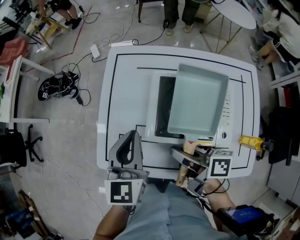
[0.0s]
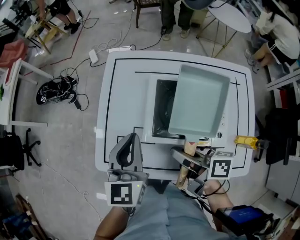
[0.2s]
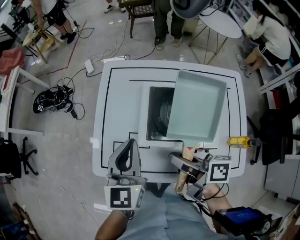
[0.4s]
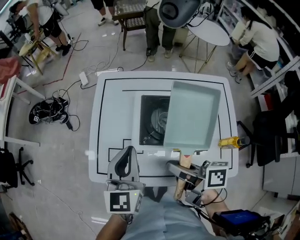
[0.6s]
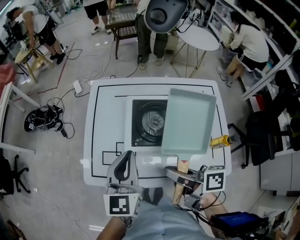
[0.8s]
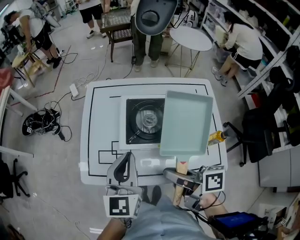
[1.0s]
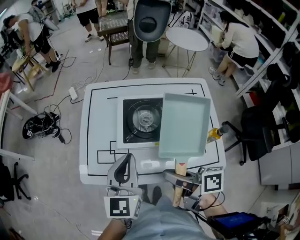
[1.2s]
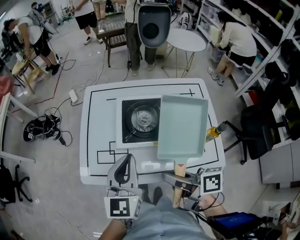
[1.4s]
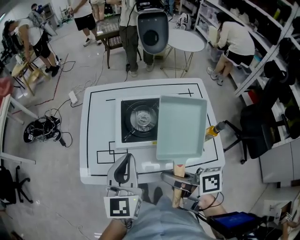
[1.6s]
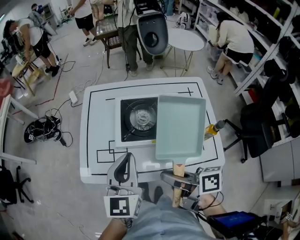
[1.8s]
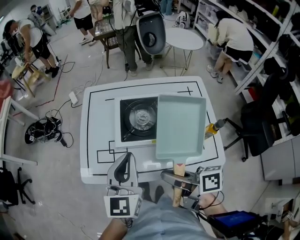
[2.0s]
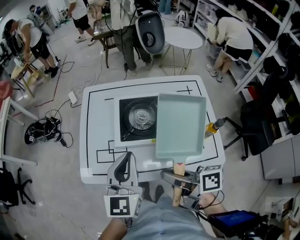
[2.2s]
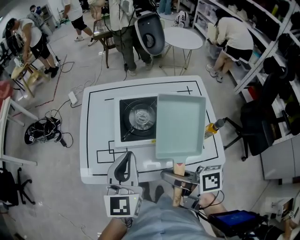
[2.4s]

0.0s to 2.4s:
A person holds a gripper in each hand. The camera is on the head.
0.0s to 1.2s: Both grippers move backward and upward, roughly 15 cm.
1.2s to 2.4s: The grippers move only a little.

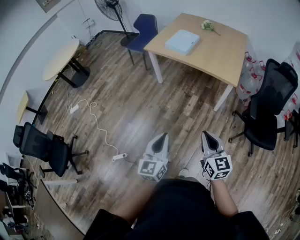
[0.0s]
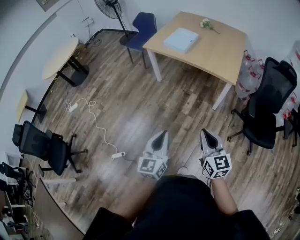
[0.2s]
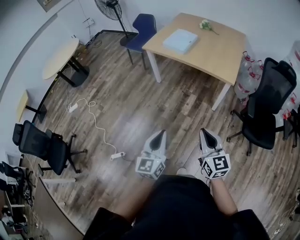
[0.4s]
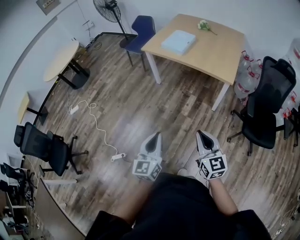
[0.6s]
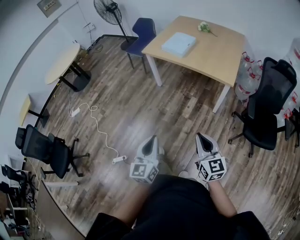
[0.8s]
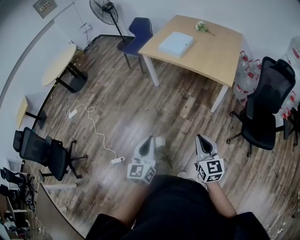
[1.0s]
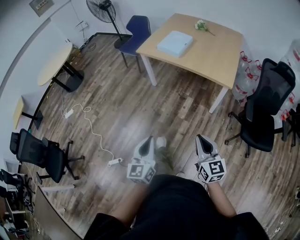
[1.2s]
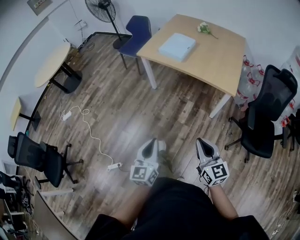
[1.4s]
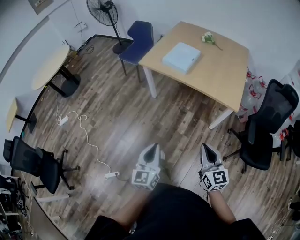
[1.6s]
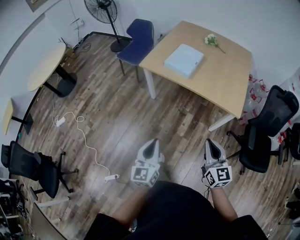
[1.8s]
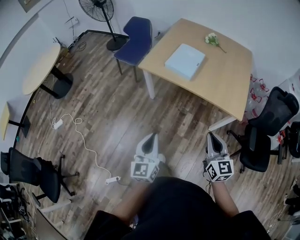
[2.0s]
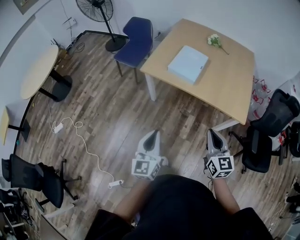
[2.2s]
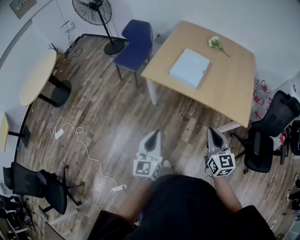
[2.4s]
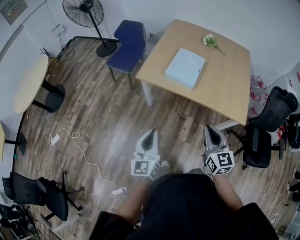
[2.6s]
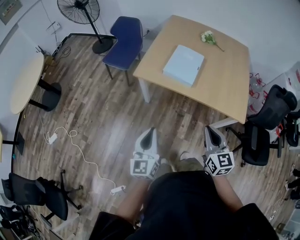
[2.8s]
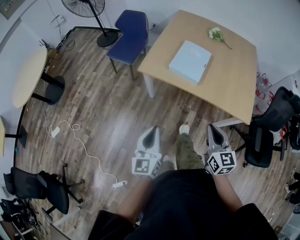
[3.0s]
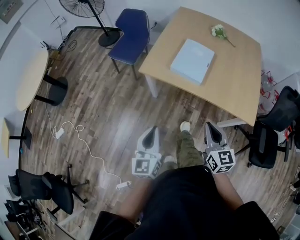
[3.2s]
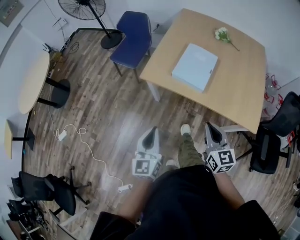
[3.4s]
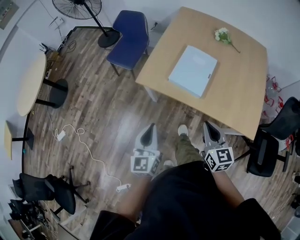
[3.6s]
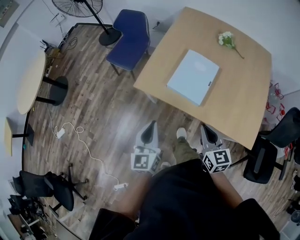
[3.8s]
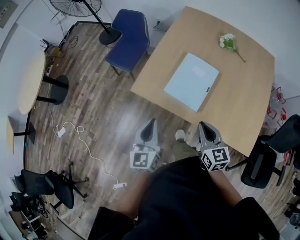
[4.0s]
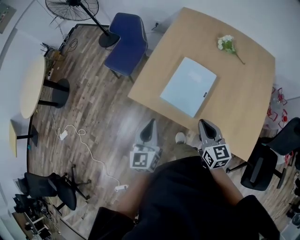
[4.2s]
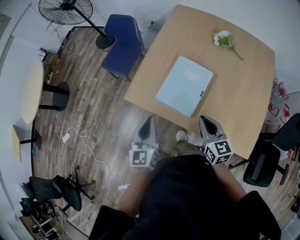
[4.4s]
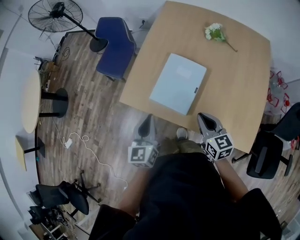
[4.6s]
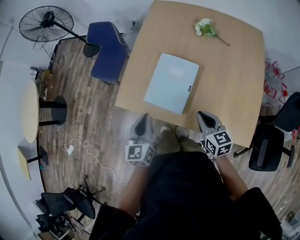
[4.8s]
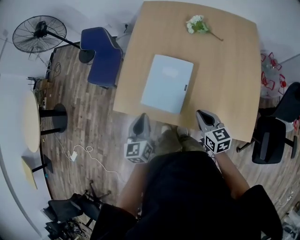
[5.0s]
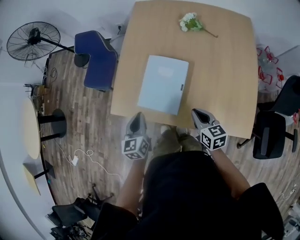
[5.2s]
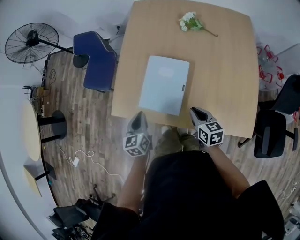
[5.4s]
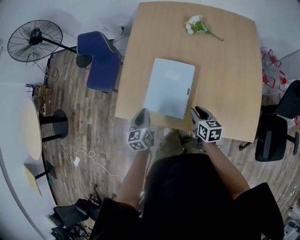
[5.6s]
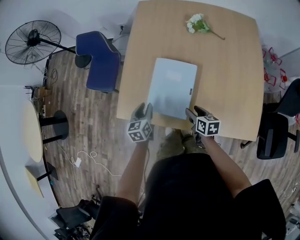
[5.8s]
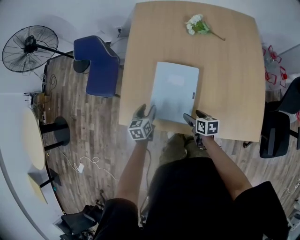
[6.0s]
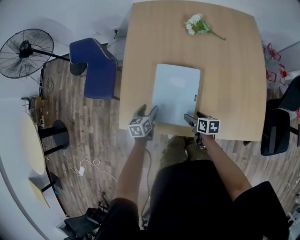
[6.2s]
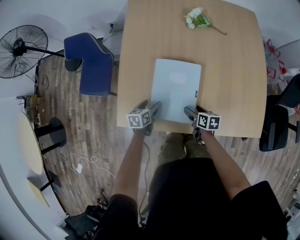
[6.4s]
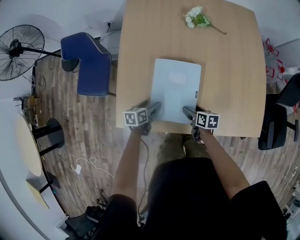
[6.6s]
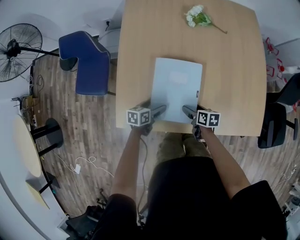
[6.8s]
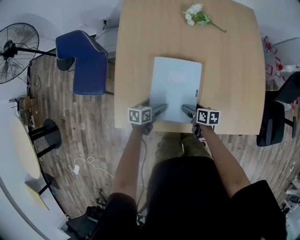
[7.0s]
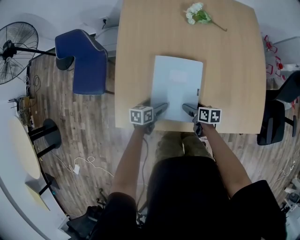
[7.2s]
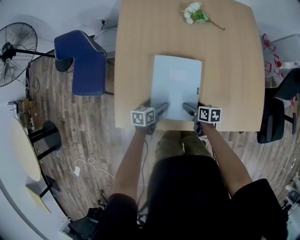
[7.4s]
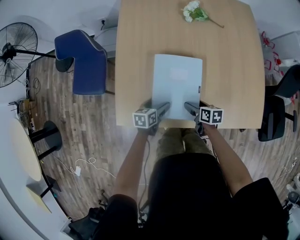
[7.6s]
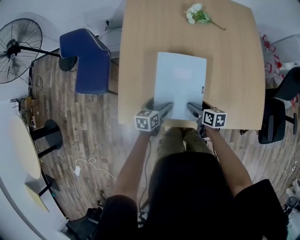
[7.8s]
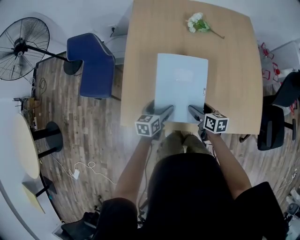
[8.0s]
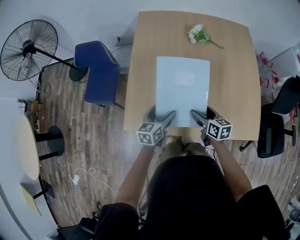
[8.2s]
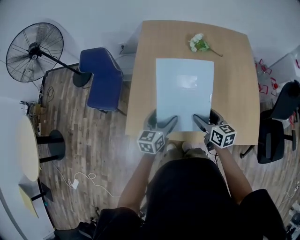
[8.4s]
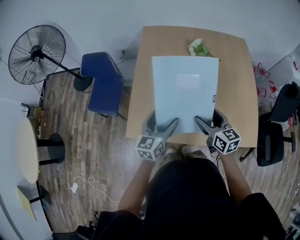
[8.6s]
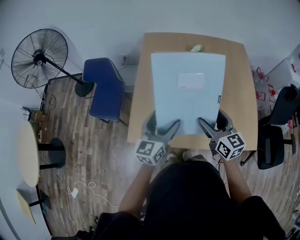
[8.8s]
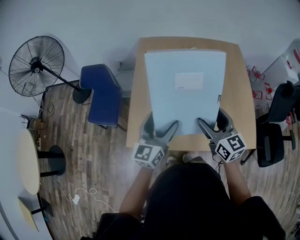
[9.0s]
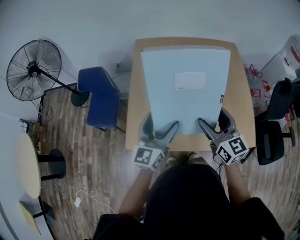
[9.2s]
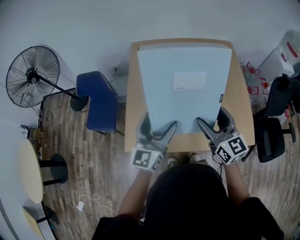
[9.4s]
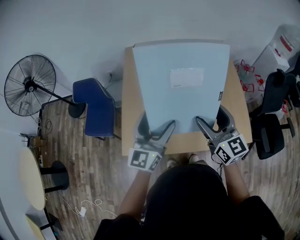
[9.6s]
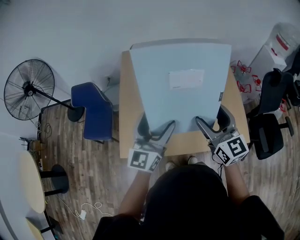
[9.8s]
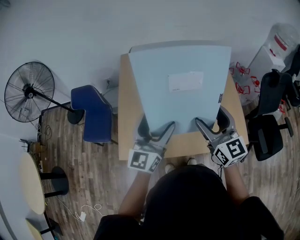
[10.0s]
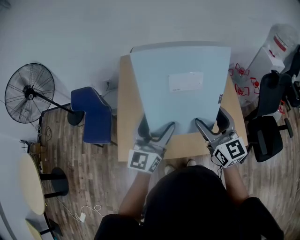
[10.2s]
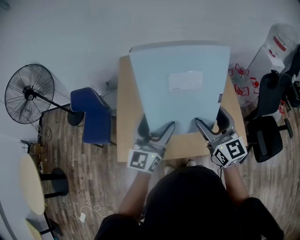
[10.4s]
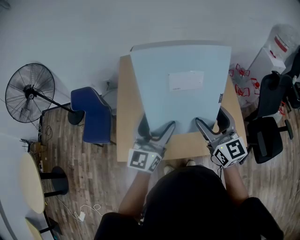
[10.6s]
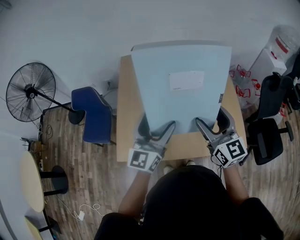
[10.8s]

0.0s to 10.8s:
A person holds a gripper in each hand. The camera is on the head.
0.0s to 1.6s: Both grippers move forward, about 20 cm.
1.6s to 3.0s: Both grippers move forward and to the left, approximately 40 cm.
3.0s to 4.6s: Both grippers are carried forward and to the right, approximately 40 cm.
4.6s to 6.2s: The left gripper moves downward and forward, approximately 30 cm, rotates approximately 40 degrees, and opens up. Meanwhile the right gripper goes some 25 cm downward, rotates around the line of its fingers by about 40 degrees, clockwise from behind, and opens up.
6.2s to 7.8s: The left gripper opens its fingers.
7.8s to 9.2s: Both grippers move upward, approximately 35 cm. The right gripper tips its fingers upward by about 30 degrees, while the left gripper tips its fingers upward by approximately 40 degrees.
9.2s to 10.8s: The grippers both shift to the right and upward by some 15 cm.

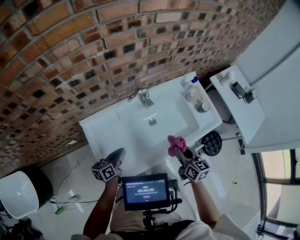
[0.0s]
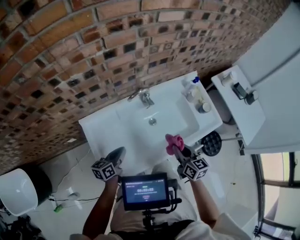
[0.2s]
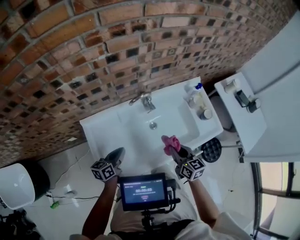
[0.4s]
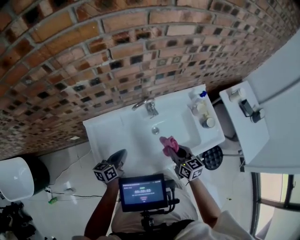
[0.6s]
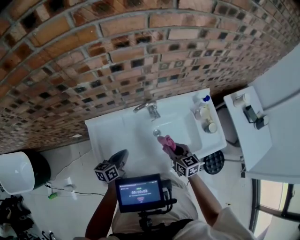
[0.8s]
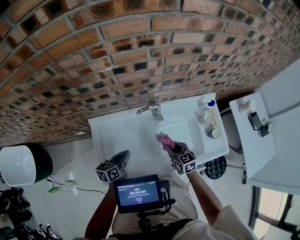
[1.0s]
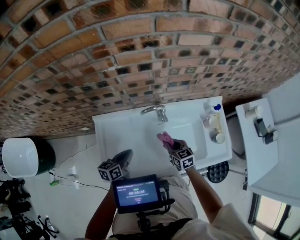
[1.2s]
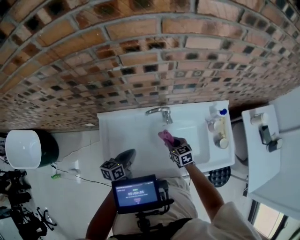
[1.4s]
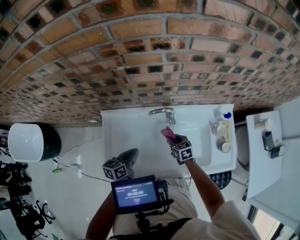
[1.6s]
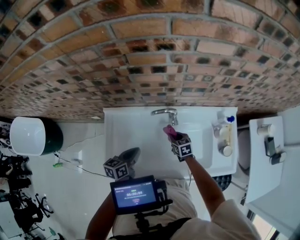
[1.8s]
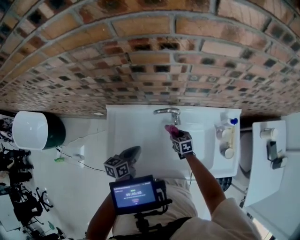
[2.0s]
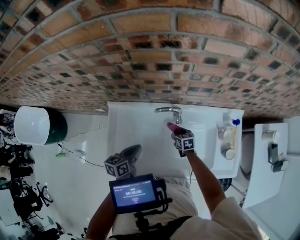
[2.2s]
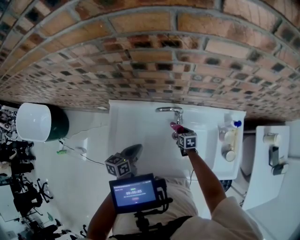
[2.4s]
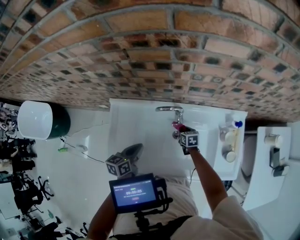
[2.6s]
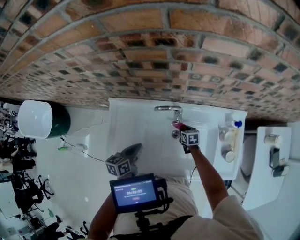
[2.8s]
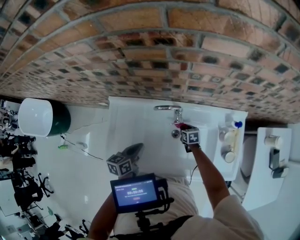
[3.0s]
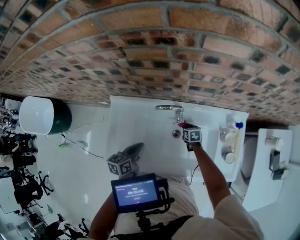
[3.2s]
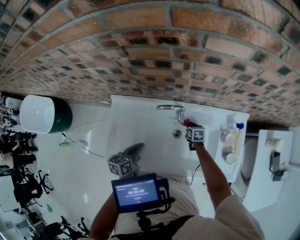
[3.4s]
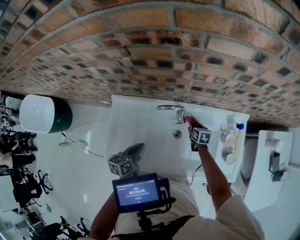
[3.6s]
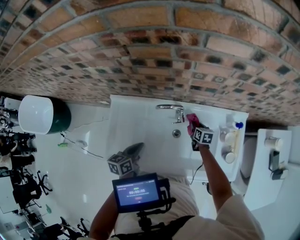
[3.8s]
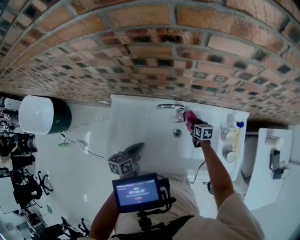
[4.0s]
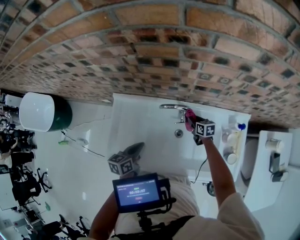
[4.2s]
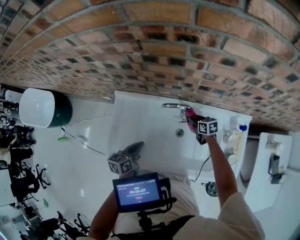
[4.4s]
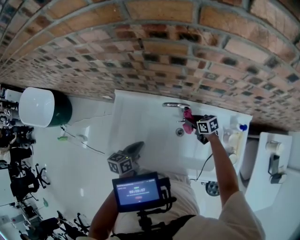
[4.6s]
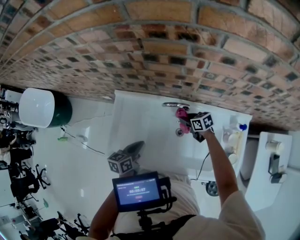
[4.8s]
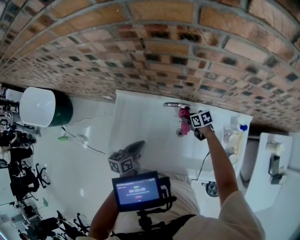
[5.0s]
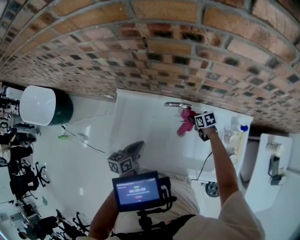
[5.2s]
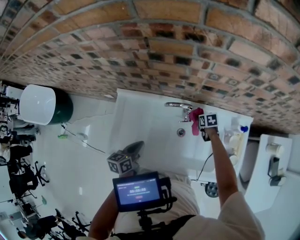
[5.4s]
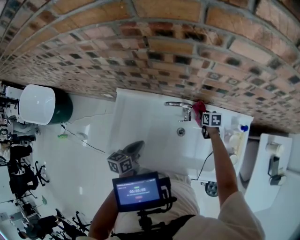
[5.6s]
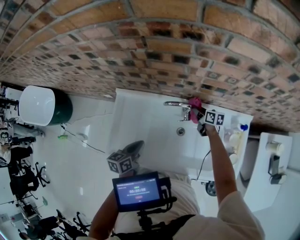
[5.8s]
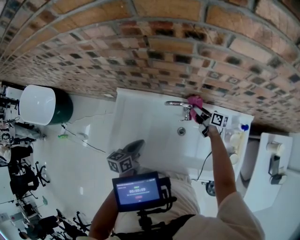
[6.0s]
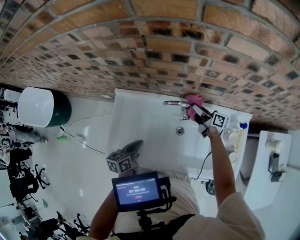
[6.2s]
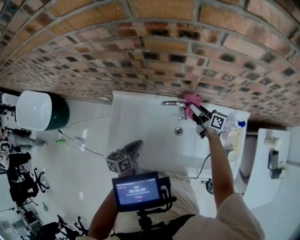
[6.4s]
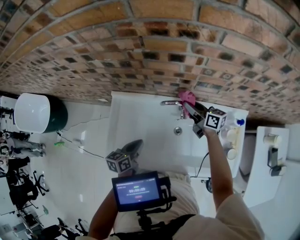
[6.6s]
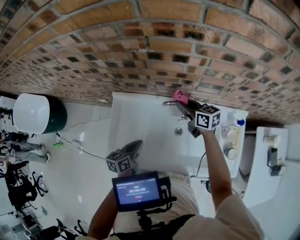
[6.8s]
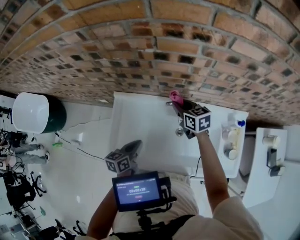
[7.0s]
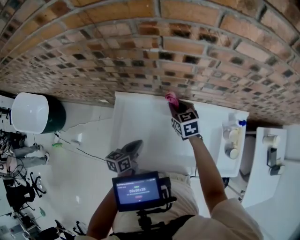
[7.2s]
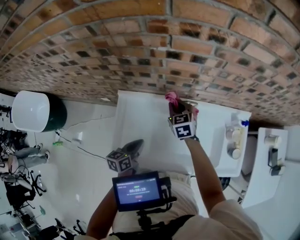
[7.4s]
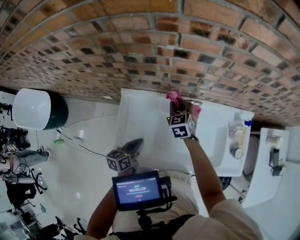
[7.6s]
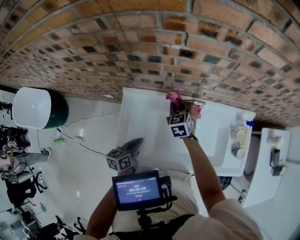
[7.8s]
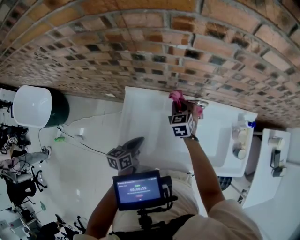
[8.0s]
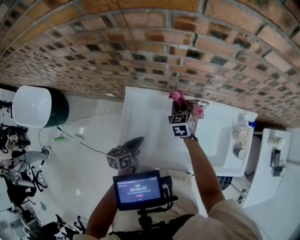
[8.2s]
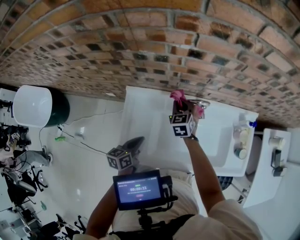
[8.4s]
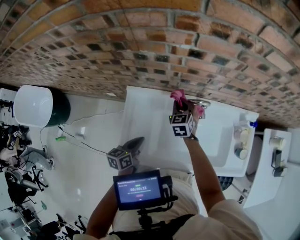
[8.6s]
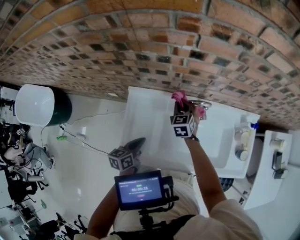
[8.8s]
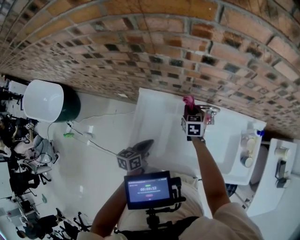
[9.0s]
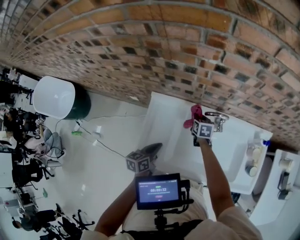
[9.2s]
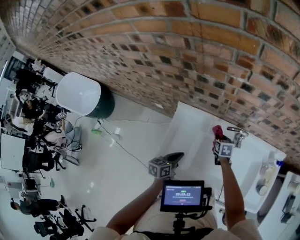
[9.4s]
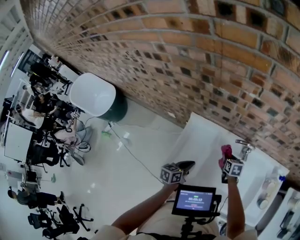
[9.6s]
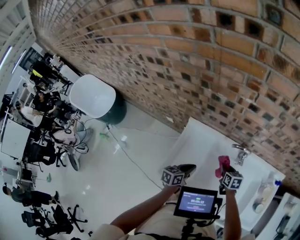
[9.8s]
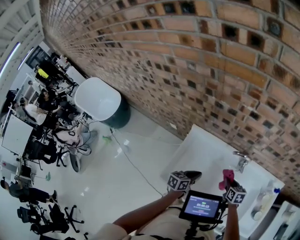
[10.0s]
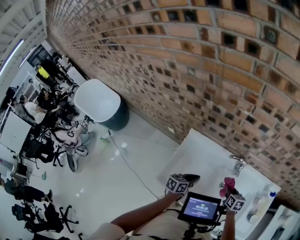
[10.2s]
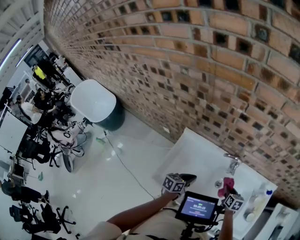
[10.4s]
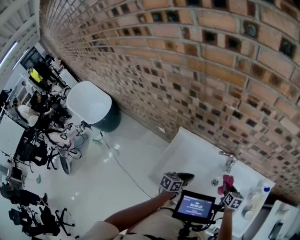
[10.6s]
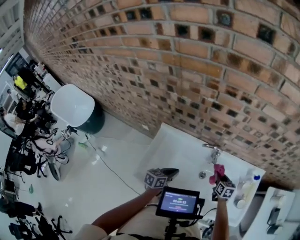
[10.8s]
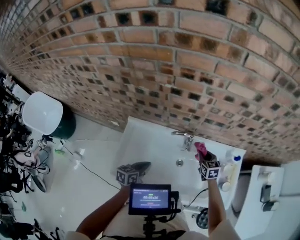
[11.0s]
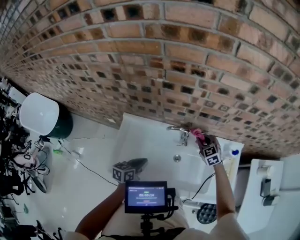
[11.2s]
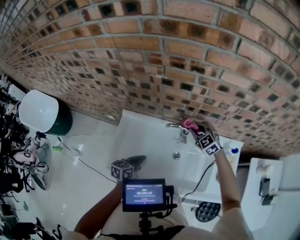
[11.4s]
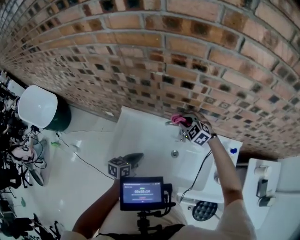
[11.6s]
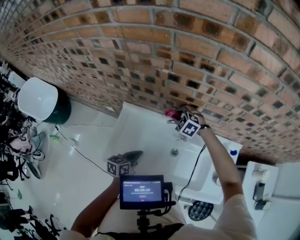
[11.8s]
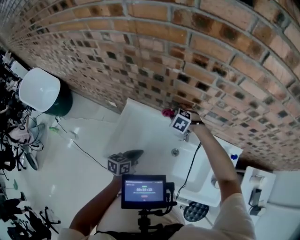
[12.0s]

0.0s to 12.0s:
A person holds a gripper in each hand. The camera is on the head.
0.0s to 1.6s: The left gripper moves some 10 cm. The right gripper shifts by some 25 cm, and changes its angle by roughly 40 degrees.
1.6s to 3.0s: The right gripper moves downward, to the right and forward, some 15 cm.
3.0s to 4.4s: The right gripper heads upward, covering about 5 cm.
4.4s to 6.0s: The right gripper swings left and right, some 10 cm each way, with 2 reversals, and changes its angle by some 40 degrees.
6.0s to 7.6s: The left gripper shifts about 5 cm to the left. The right gripper goes approximately 20 cm to the left and upward, and rolls counterclockwise, seen from behind, by about 60 degrees.
7.6s to 9.0s: The right gripper moves downward, some 5 cm.
9.0s to 10.4s: The right gripper is displaced backward and to the right by some 25 cm, and turns by about 20 degrees. Meanwhile the left gripper moves to the right, roughly 10 cm.
10.4s to 12.0s: The right gripper travels forward and to the left by approximately 25 cm, and twists some 80 degrees counterclockwise, seen from behind.
